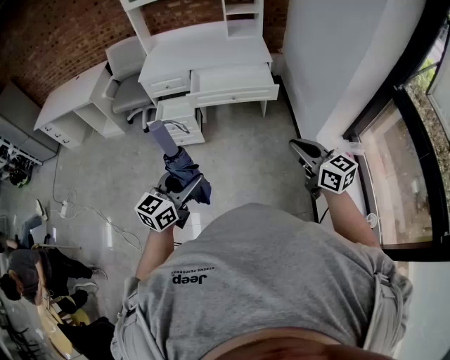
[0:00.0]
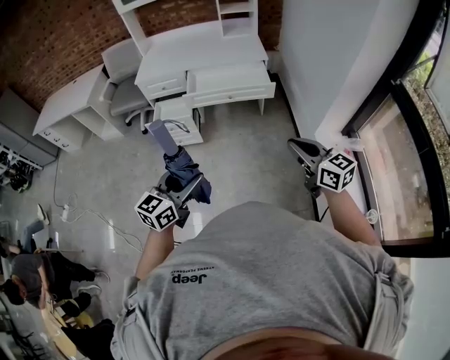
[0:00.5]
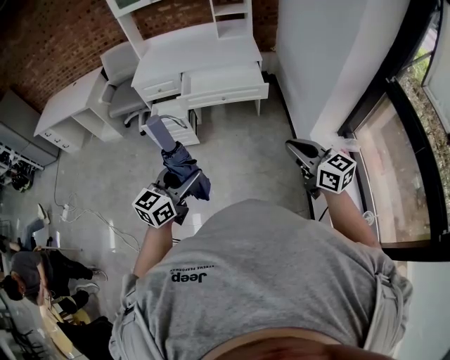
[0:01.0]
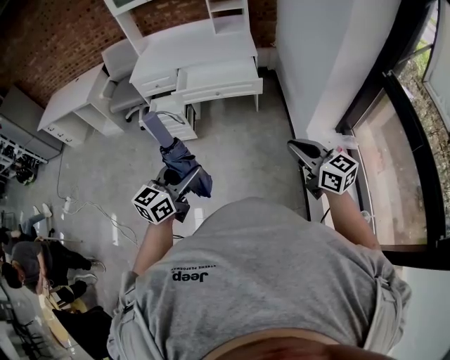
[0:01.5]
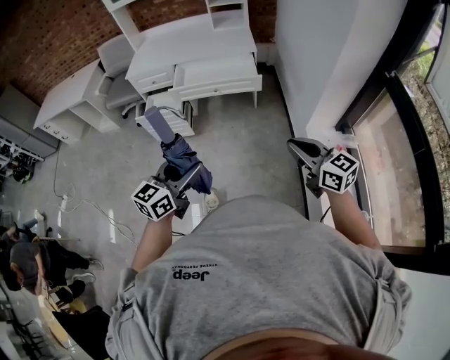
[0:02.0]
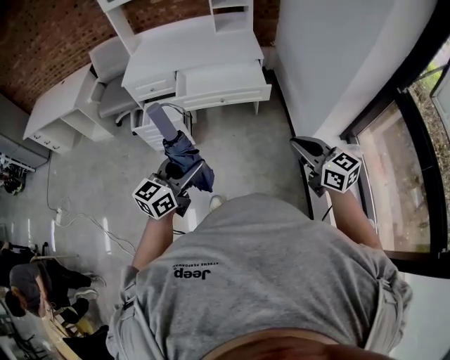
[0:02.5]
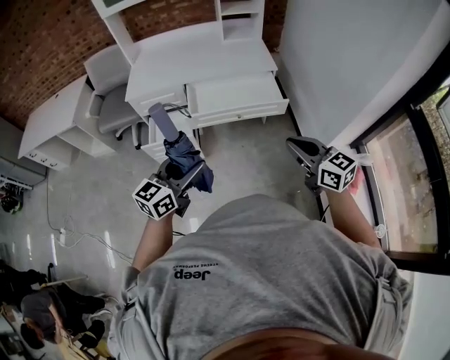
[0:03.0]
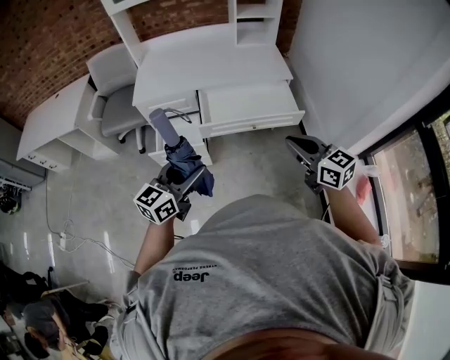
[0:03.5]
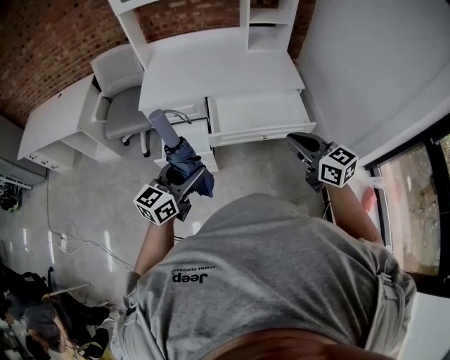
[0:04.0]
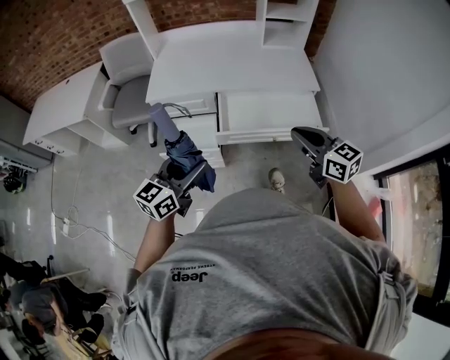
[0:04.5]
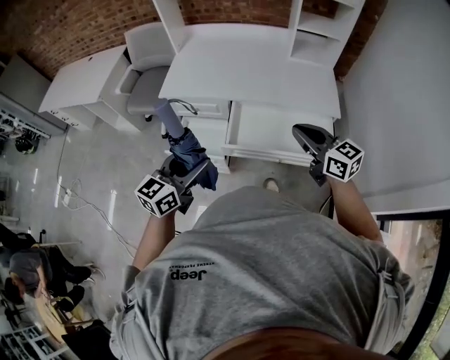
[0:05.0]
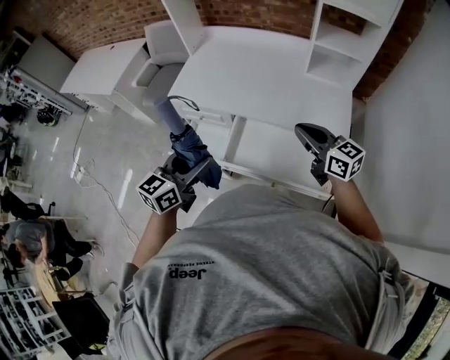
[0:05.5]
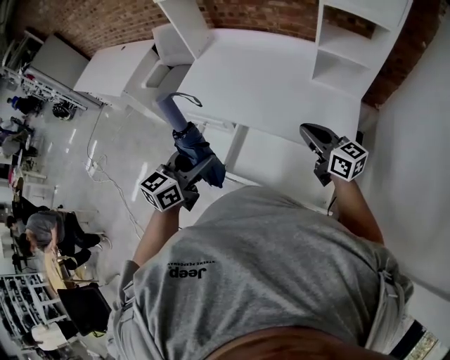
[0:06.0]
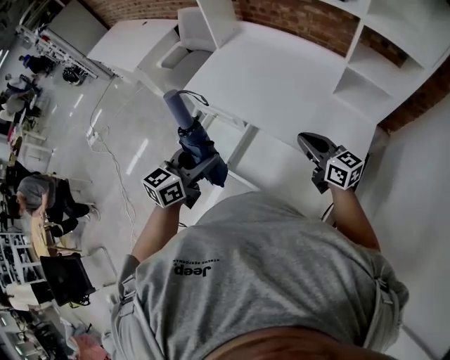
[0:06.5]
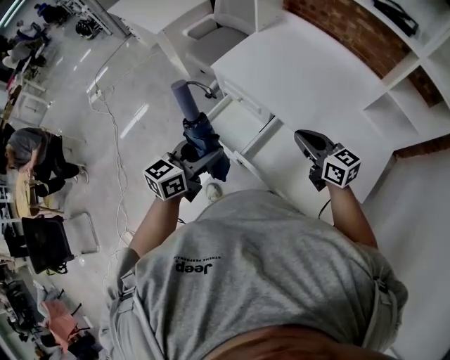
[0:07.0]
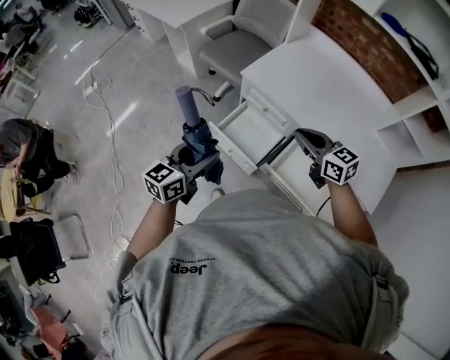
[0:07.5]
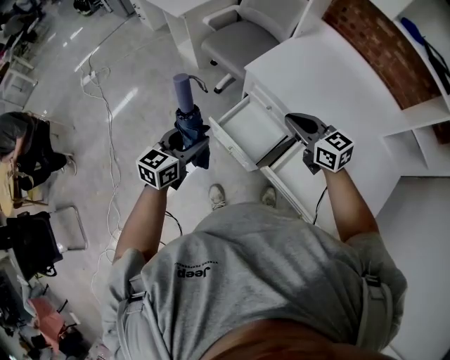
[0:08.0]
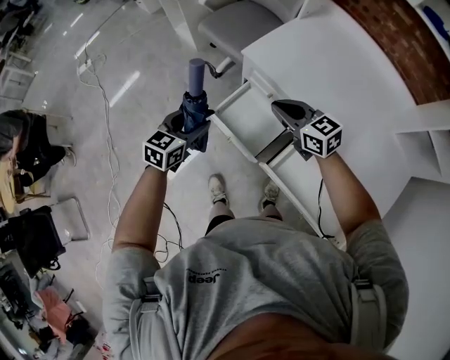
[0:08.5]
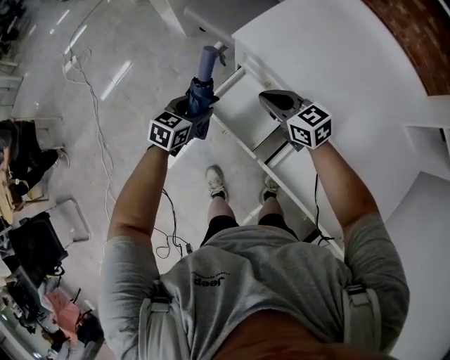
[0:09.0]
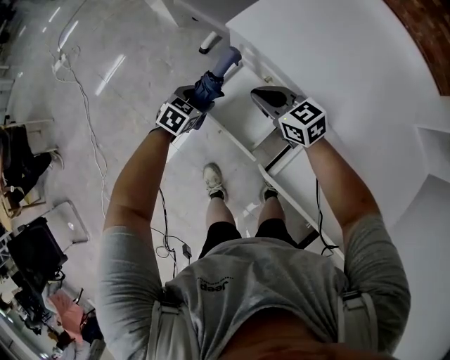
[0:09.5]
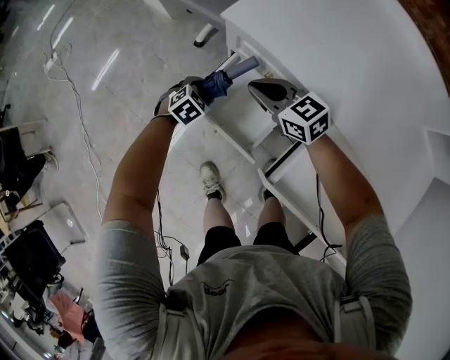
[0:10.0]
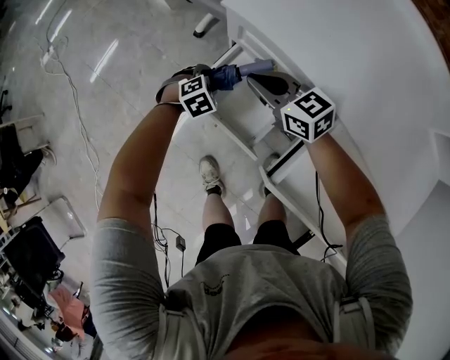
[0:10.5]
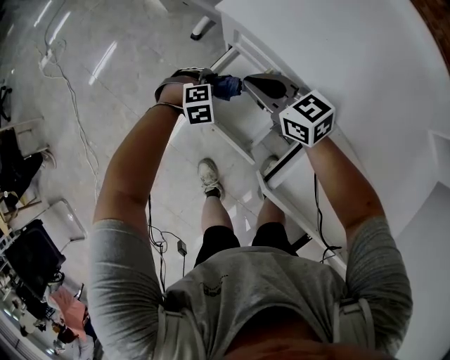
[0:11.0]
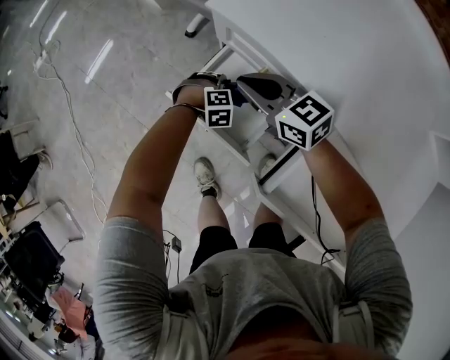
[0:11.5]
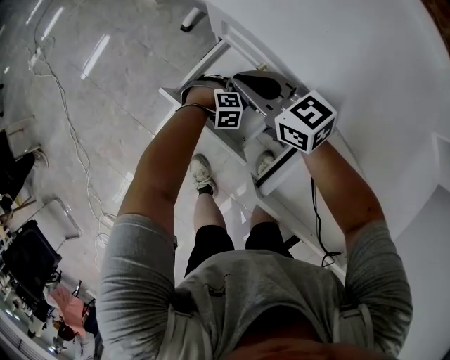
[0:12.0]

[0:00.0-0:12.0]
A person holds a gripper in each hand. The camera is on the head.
0:00.0 to 0:02.0: The grippers both shift to the right by approximately 10 cm.
0:02.0 to 0:04.0: Both grippers are carried forward and to the left, approximately 50 cm.
0:04.0 to 0:06.0: The right gripper changes place by roughly 40 cm, and changes its angle by roughly 30 degrees, while the left gripper moves approximately 30 cm, and turns by about 30 degrees.
0:06.0 to 0:08.0: The left gripper shifts approximately 35 cm to the left, and swivels roughly 20 degrees. Meanwhile the right gripper shifts roughly 40 cm to the left and forward, and turns by roughly 30 degrees.
0:08.0 to 0:10.0: The two grippers go some 35 cm downward and forward. The left gripper tips its fingers downward by approximately 40 degrees.
0:10.0 to 0:12.0: The left gripper heads downward, covering approximately 10 cm, and swivels about 40 degrees.

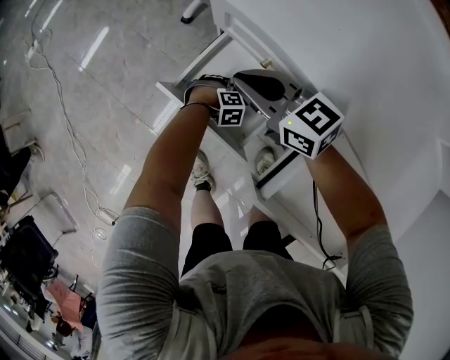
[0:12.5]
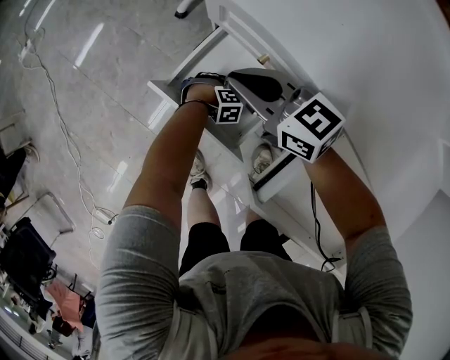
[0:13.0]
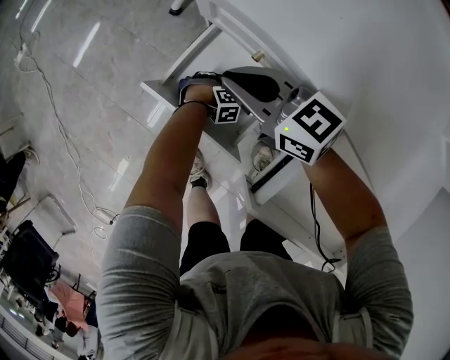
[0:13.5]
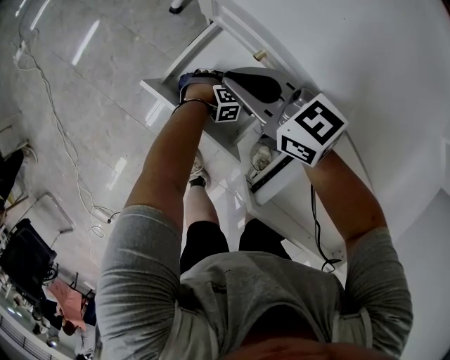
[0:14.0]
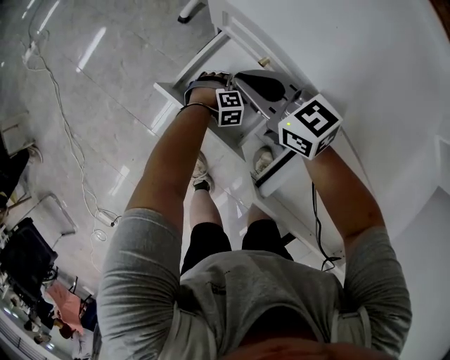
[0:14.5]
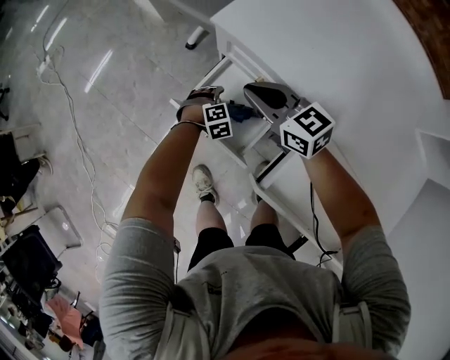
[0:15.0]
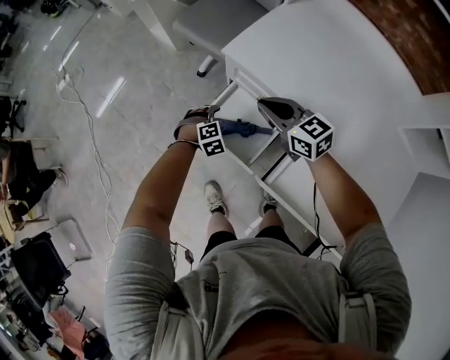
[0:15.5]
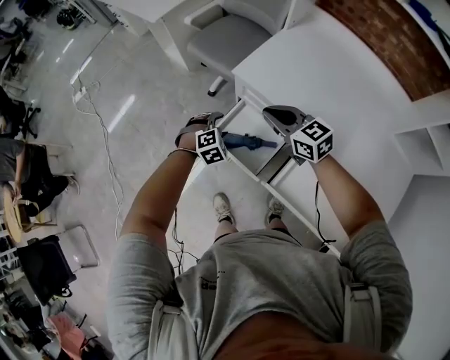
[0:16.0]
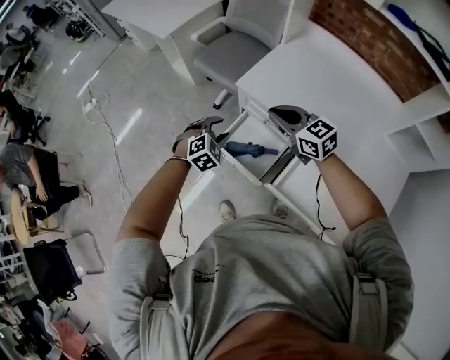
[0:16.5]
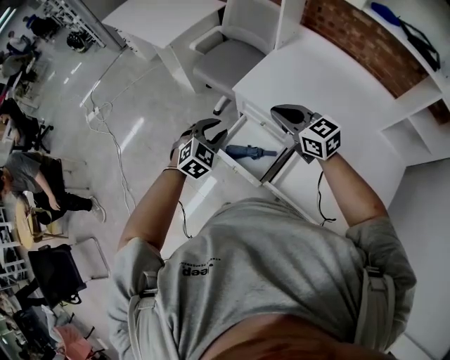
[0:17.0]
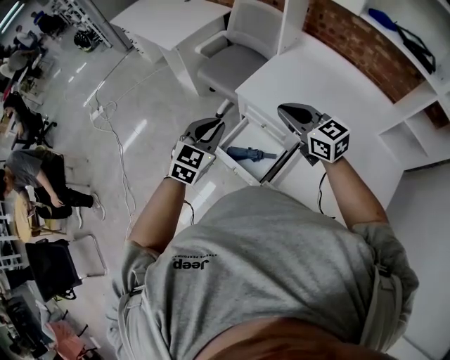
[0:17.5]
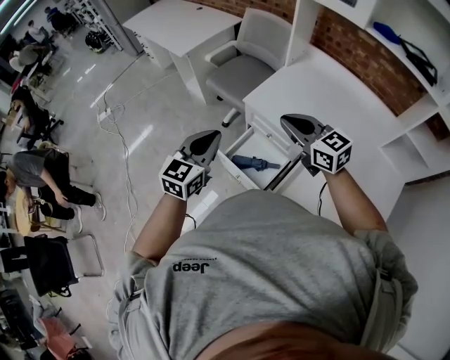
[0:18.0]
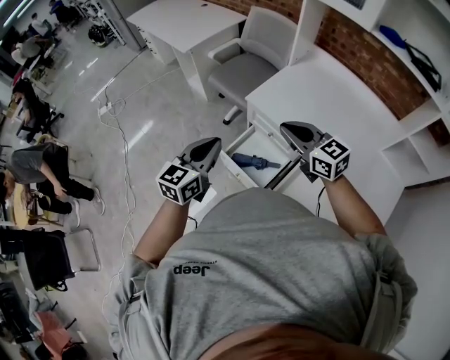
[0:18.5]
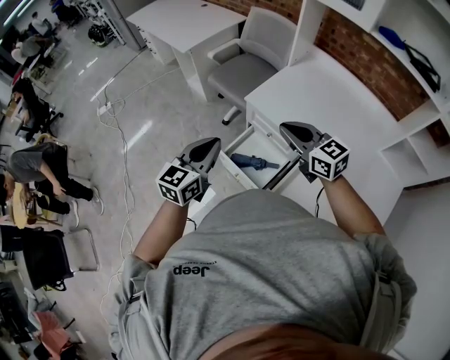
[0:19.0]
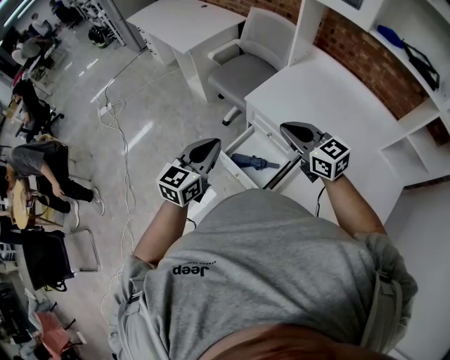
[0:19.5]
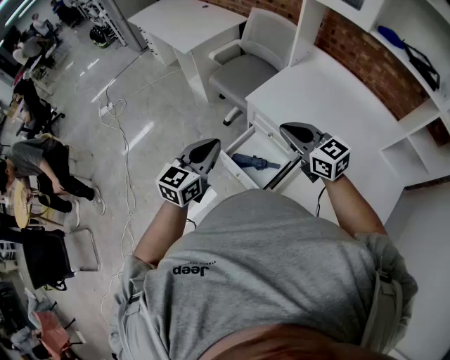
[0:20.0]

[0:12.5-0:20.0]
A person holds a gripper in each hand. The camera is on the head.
0:12.5 to 0:14.5: The grippers stay close to where they were, moving slightly.
0:14.5 to 0:16.5: The left gripper moves upward, about 50 cm, changes its angle by approximately 30 degrees, and closes up; the right gripper shifts some 30 cm upward.
0:16.5 to 0:18.0: The left gripper shifts approximately 20 cm upward, points its fingers about 40 degrees further upward, and closes up. Meanwhile the right gripper goes roughly 15 cm upward and backward.
0:18.0 to 0:20.0: The grippers stay close to where they were, moving slightly.

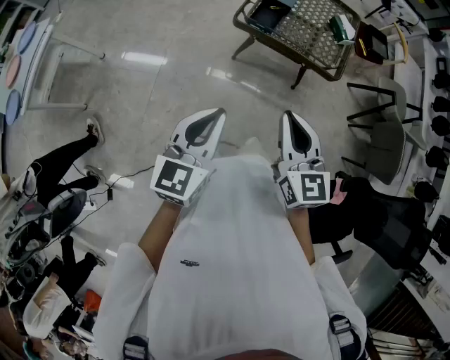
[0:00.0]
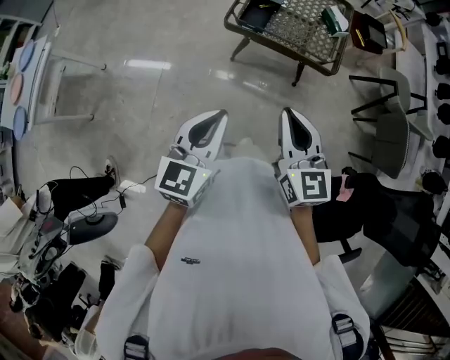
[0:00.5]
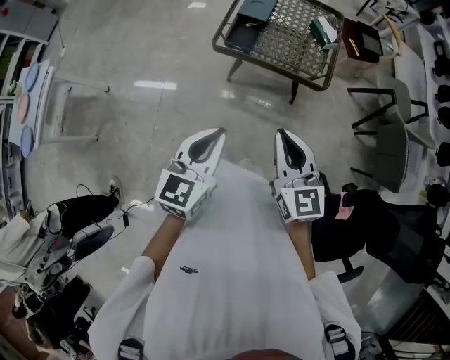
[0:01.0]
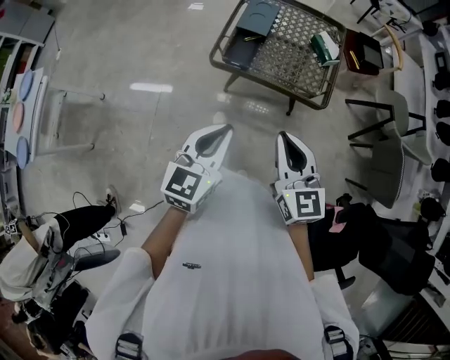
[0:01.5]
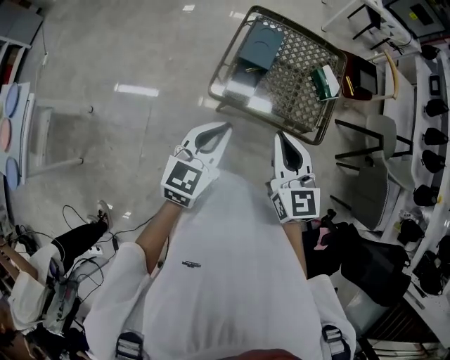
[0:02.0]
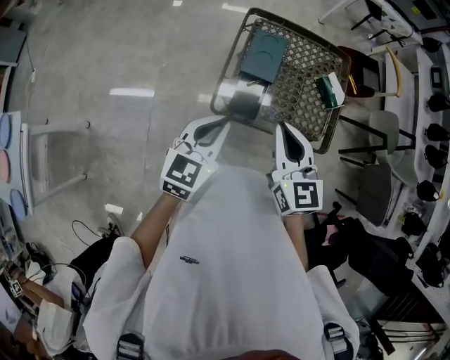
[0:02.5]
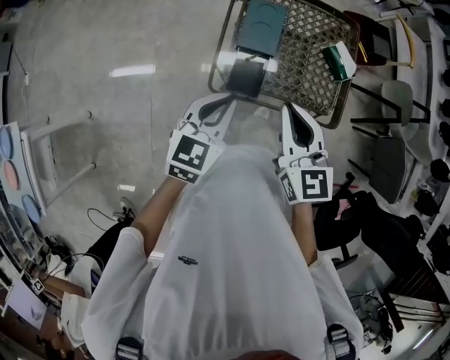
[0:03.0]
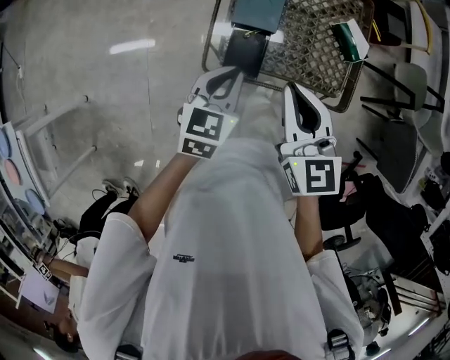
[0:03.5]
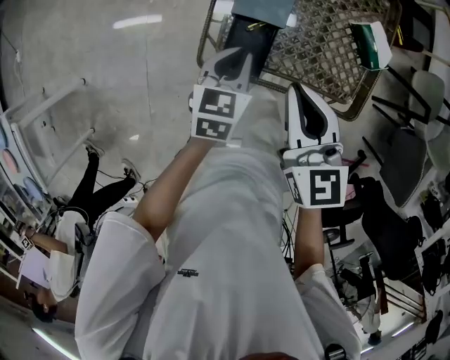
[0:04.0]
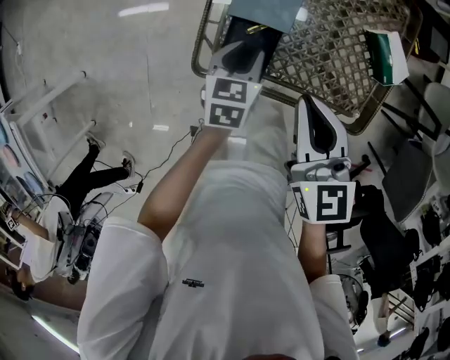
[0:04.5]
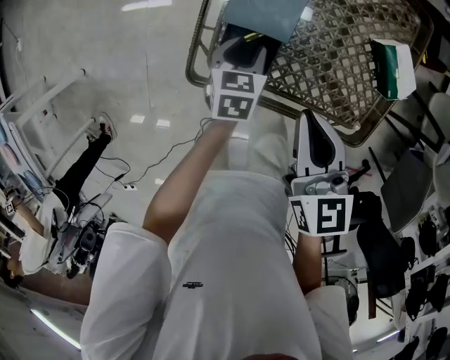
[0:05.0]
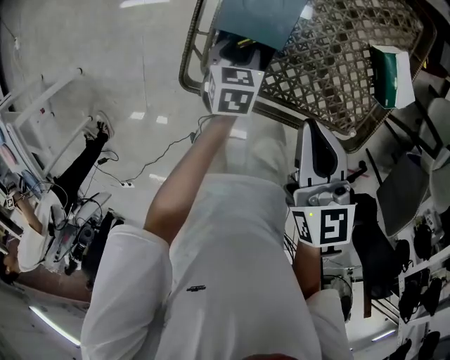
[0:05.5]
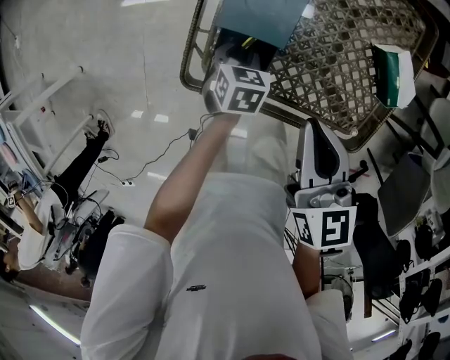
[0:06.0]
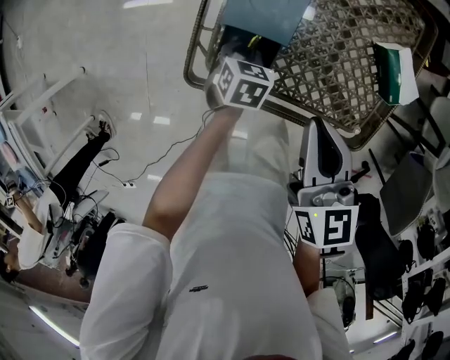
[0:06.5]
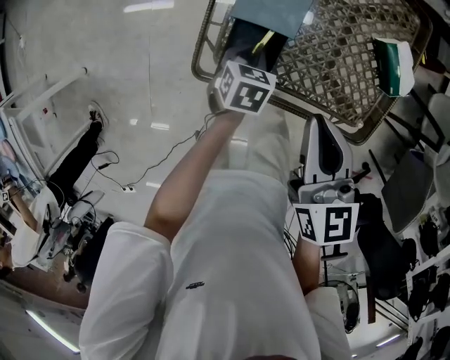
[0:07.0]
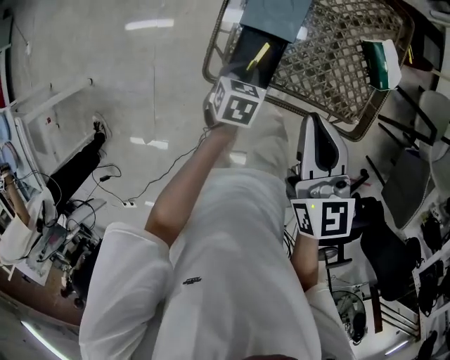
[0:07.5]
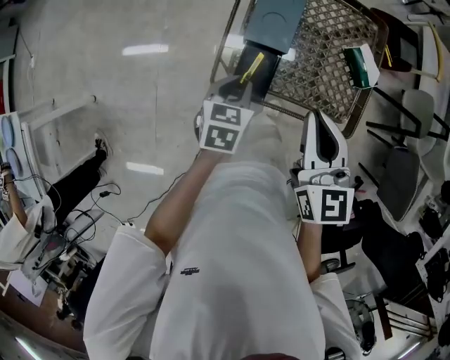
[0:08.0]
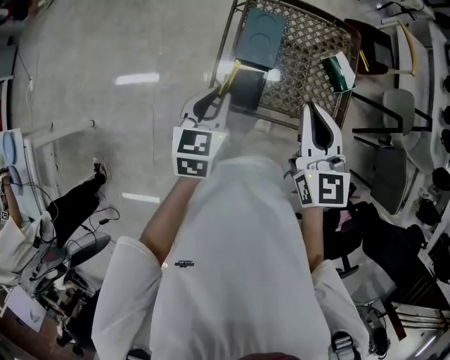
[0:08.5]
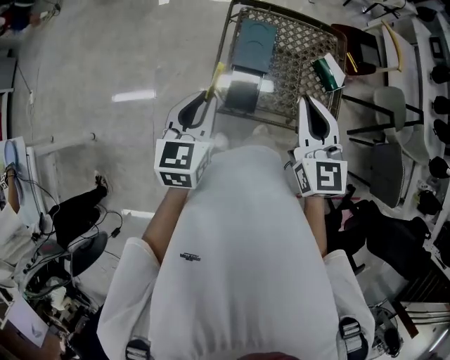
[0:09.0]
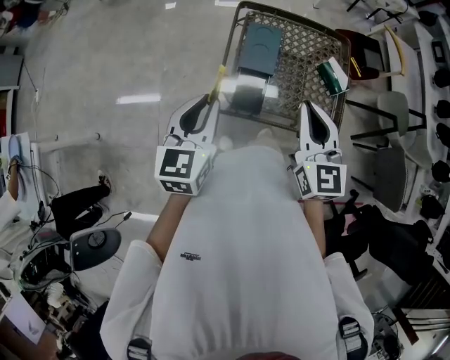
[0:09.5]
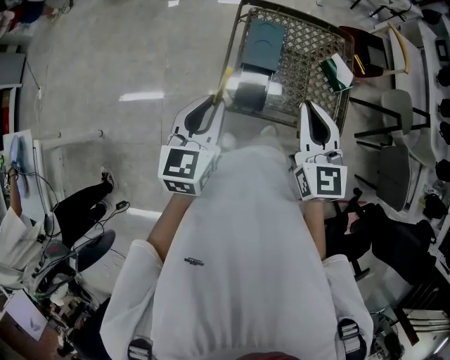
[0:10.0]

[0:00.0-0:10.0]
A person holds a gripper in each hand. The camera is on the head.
0:00.0 to 0:02.0: The two grippers go about 30 cm forward.
0:02.0 to 0:04.0: Both grippers move forward and downward, some 30 cm. The left gripper changes its angle by some 20 degrees.
0:04.0 to 0:06.0: The right gripper moves downward and to the right, approximately 10 cm. Meanwhile the left gripper travels downward by roughly 20 cm, rotates some 20 degrees, and opens up.
0:06.0 to 0:08.0: The two grippers go roughly 20 cm upward and backward. The right gripper rotates some 20 degrees.
0:08.0 to 0:10.0: The left gripper shifts about 20 cm upward, and changes its angle by approximately 30 degrees, while the right gripper goes roughly 10 cm upward.
